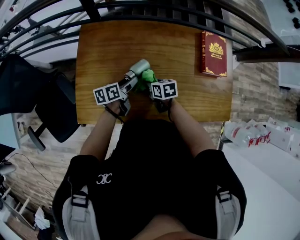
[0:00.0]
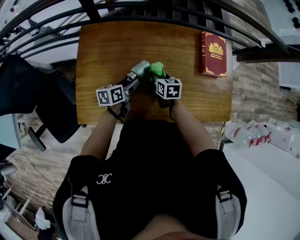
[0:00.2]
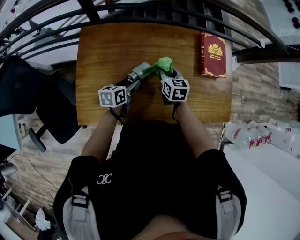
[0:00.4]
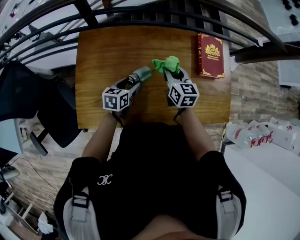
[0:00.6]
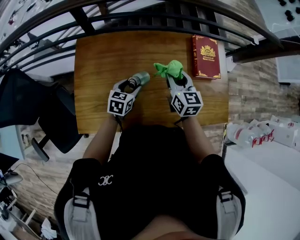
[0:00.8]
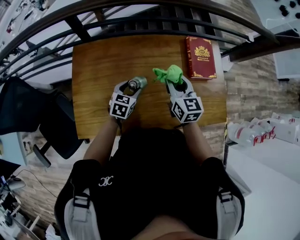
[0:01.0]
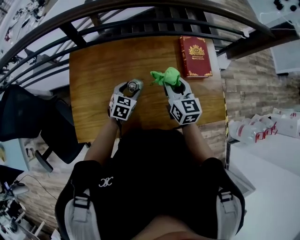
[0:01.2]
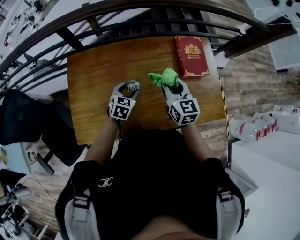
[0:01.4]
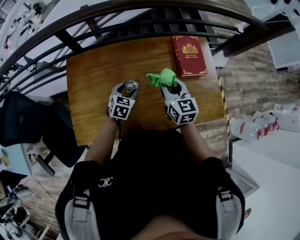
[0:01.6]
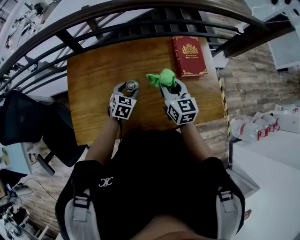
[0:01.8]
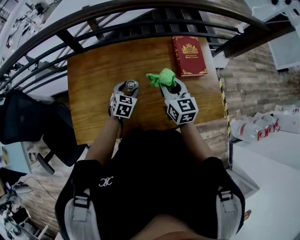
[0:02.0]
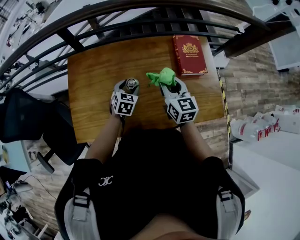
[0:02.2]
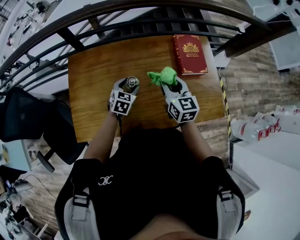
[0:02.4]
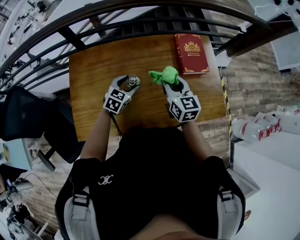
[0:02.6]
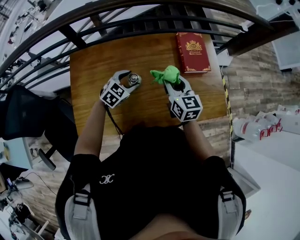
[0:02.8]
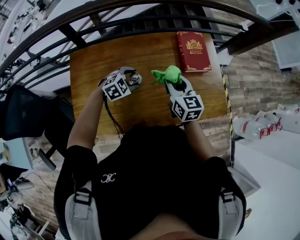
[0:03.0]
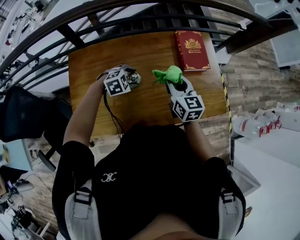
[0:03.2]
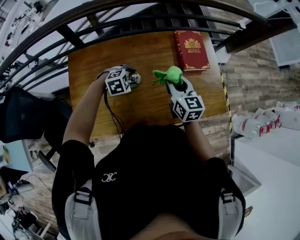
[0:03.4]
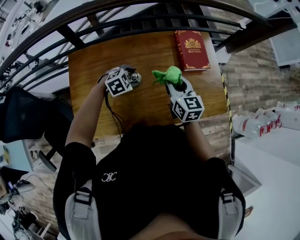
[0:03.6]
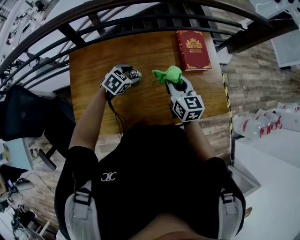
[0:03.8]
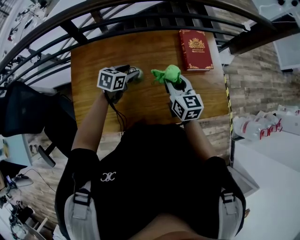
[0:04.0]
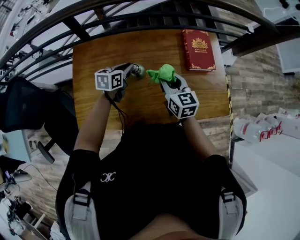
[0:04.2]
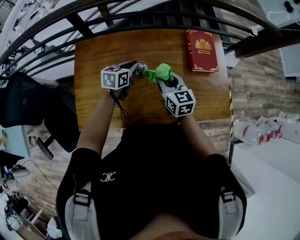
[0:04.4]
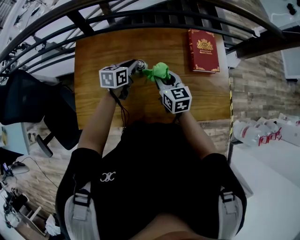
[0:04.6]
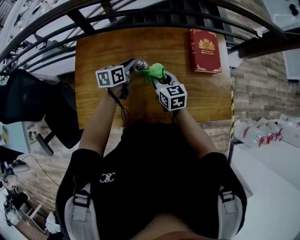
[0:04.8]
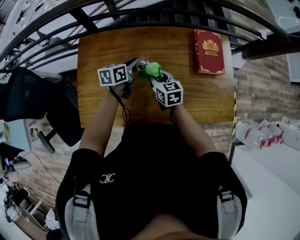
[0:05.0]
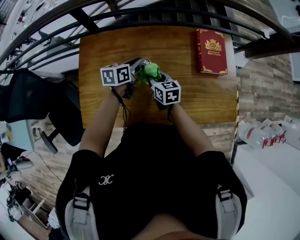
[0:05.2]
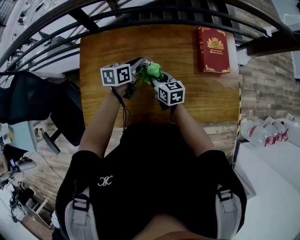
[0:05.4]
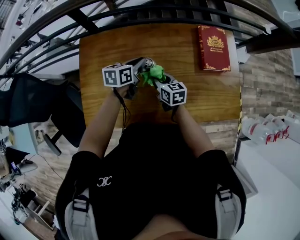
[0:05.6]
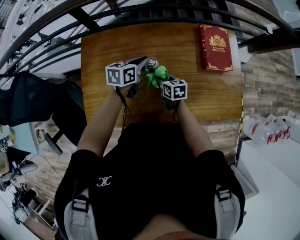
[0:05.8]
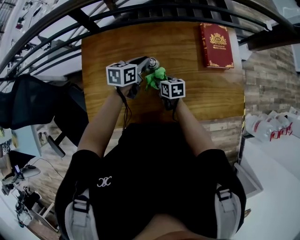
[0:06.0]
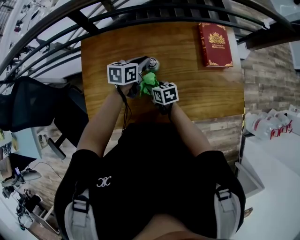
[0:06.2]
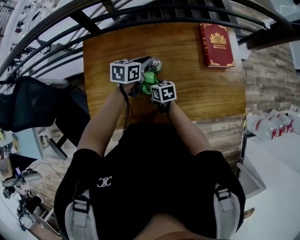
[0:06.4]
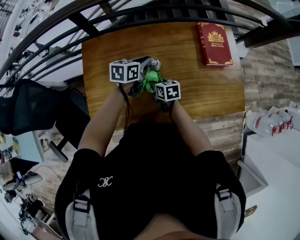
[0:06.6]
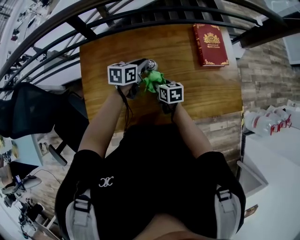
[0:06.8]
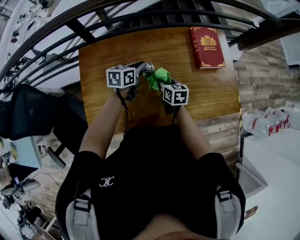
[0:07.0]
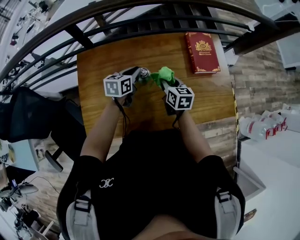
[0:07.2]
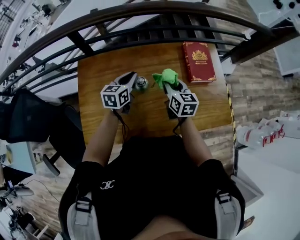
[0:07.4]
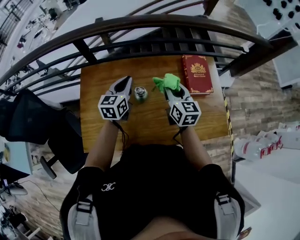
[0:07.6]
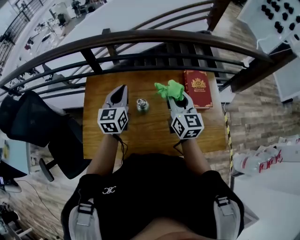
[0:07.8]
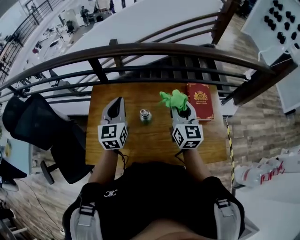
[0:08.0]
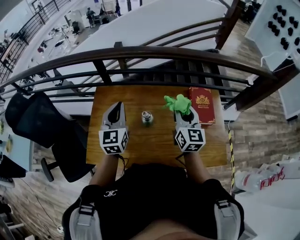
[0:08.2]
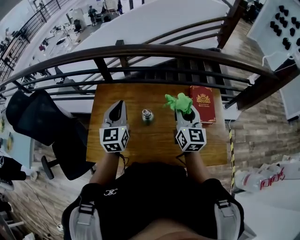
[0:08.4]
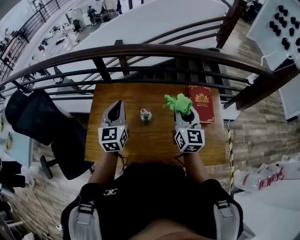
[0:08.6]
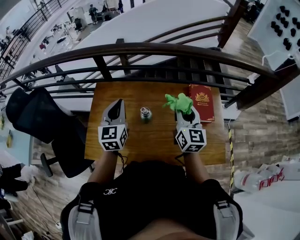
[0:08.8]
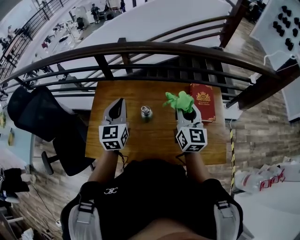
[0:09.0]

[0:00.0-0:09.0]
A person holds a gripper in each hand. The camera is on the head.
0:00.0 to 0:01.6: The left gripper moves to the right, some 10 cm, and rolls clockwise, seen from behind, by about 60 degrees. Meanwhile the right gripper goes about 30 cm upward and to the right, and tilts its fingers some 30 degrees upward.
0:01.6 to 0:03.0: The left gripper rotates about 40 degrees.
0:03.0 to 0:04.4: The grippers both shift to the left by about 5 cm. The left gripper rolls counterclockwise, seen from behind, by approximately 60 degrees, and closes its fingers.
0:04.4 to 0:06.0: The right gripper shifts some 20 cm downward, and turns by some 30 degrees.
0:06.0 to 0:07.6: The left gripper moves upward, some 10 cm, and rotates approximately 30 degrees. Meanwhile the right gripper travels upward by roughly 25 cm, and turns by some 40 degrees.
0:07.6 to 0:09.0: The right gripper moves upward, roughly 10 cm; the left gripper goes approximately 15 cm upward and backward, and turns by about 30 degrees.

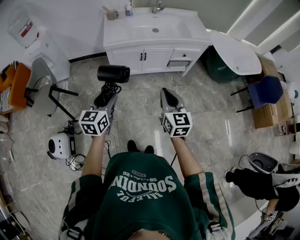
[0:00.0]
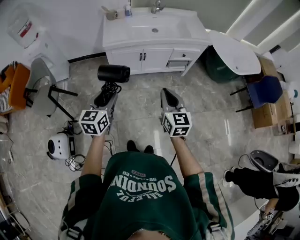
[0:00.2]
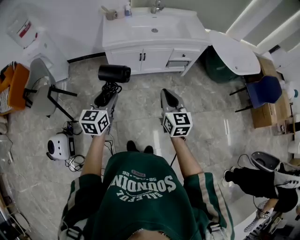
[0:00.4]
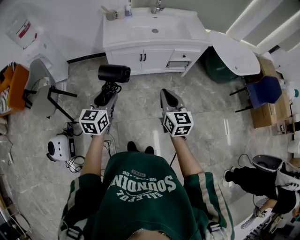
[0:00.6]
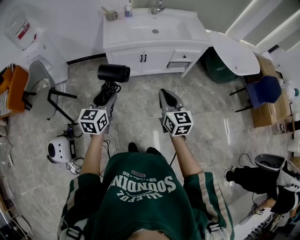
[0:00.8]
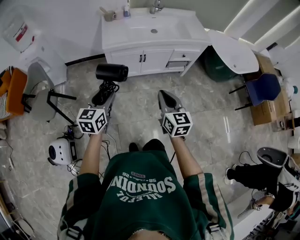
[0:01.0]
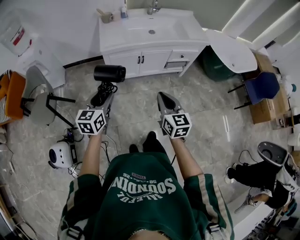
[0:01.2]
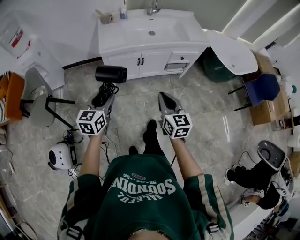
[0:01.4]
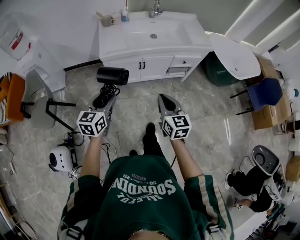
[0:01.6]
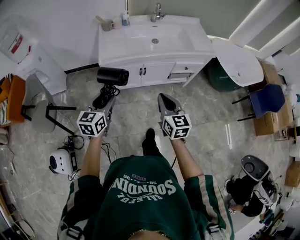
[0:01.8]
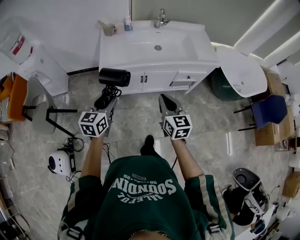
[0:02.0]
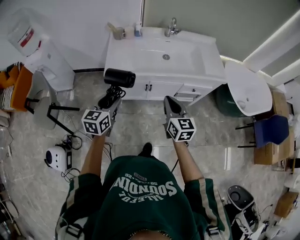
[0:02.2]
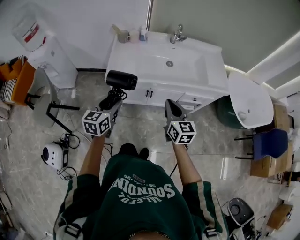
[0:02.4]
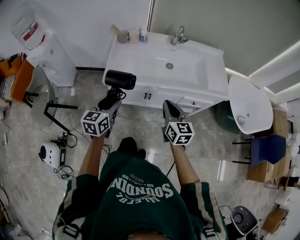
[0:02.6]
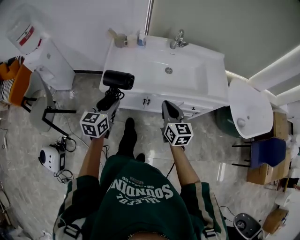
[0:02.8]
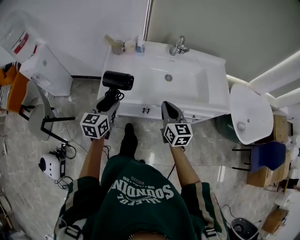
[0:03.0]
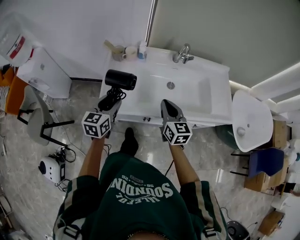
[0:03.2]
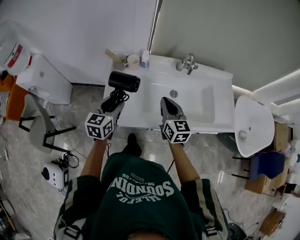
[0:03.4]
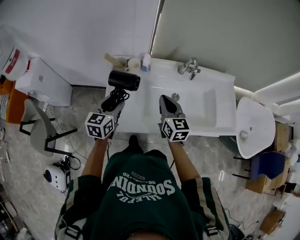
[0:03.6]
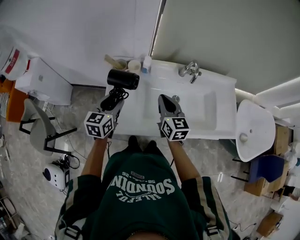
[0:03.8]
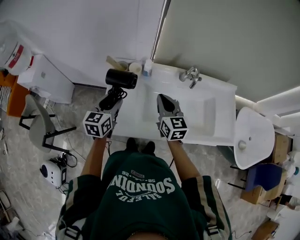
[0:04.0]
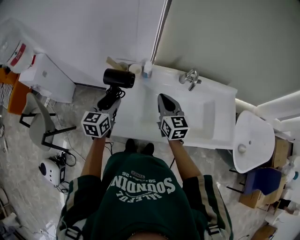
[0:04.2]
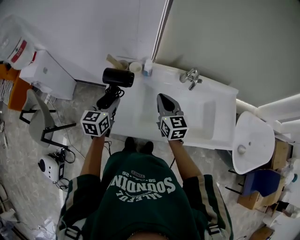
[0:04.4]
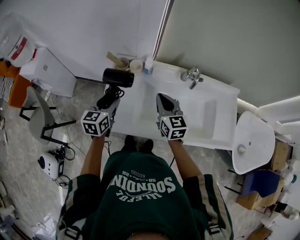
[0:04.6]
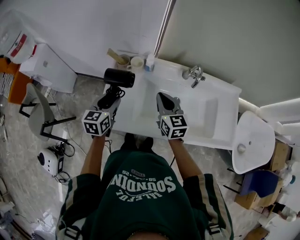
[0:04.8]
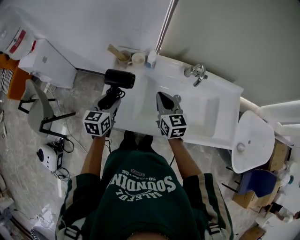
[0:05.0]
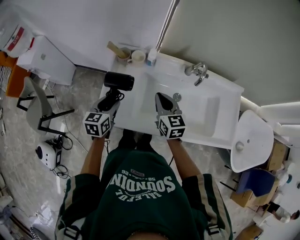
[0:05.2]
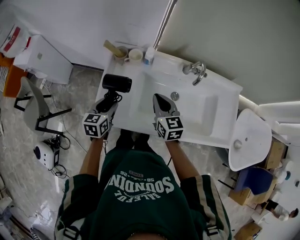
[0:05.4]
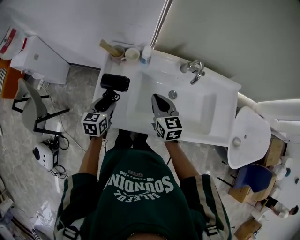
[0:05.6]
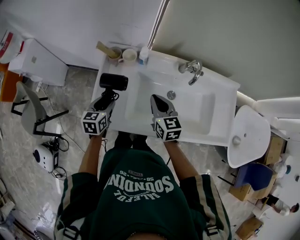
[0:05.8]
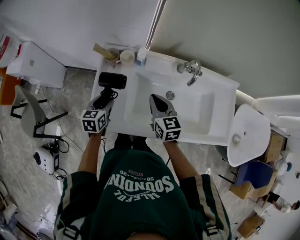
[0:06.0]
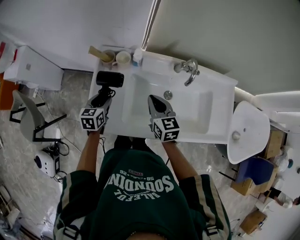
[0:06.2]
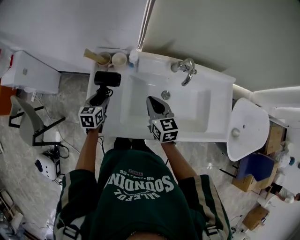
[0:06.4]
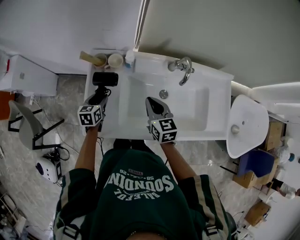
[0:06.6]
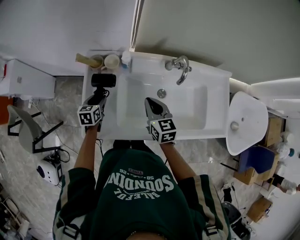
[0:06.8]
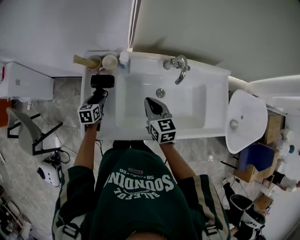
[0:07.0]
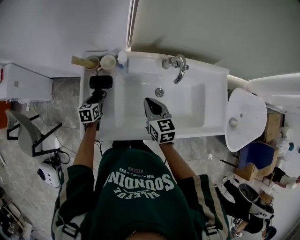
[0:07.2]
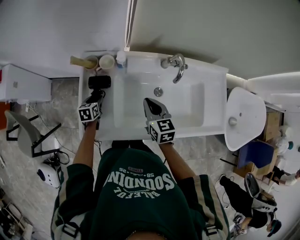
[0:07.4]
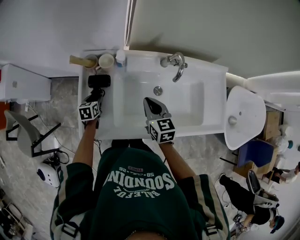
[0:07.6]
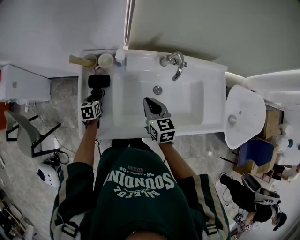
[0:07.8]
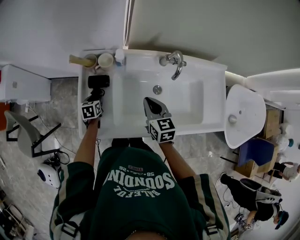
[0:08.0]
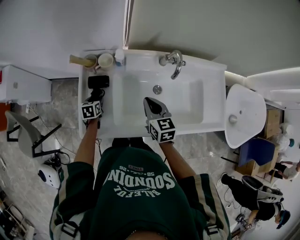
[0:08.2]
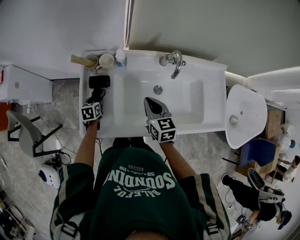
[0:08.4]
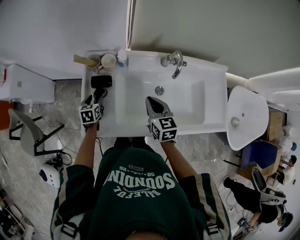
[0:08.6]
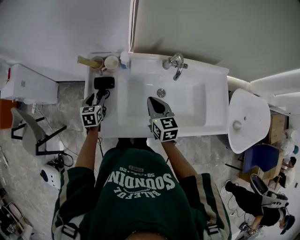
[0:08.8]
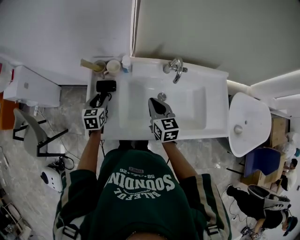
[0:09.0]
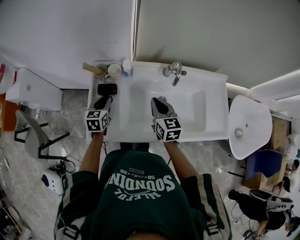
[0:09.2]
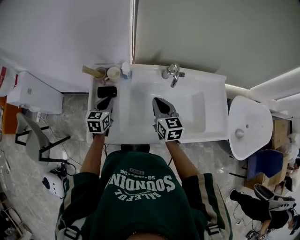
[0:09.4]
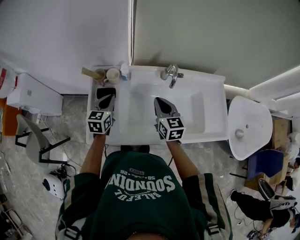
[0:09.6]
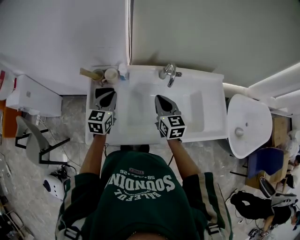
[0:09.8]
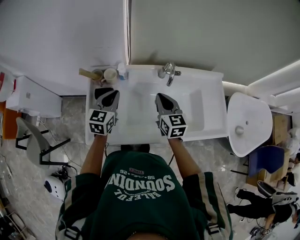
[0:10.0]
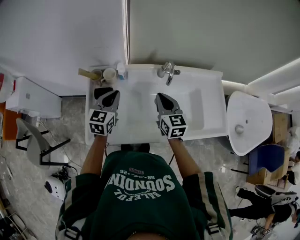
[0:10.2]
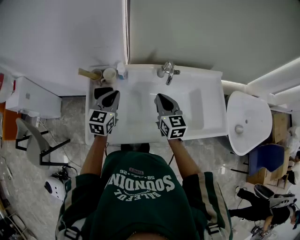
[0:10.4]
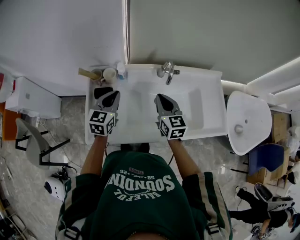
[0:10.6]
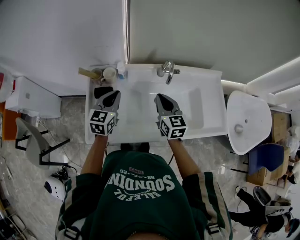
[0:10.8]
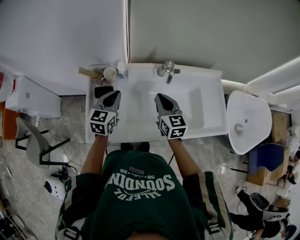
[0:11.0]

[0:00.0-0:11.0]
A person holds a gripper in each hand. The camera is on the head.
0:00.0 to 0:01.6: The grippers both shift forward by approximately 10 cm.
0:01.6 to 0:03.2: Both grippers are carried forward, approximately 50 cm.
0:03.2 to 0:04.8: The two grippers go about 15 cm forward.
0:04.8 to 0:06.2: The left gripper shifts roughly 10 cm downward; the right gripper heads downward, covering approximately 5 cm.
0:06.2 to 0:07.8: The left gripper moves downward, about 10 cm.
0:07.8 to 0:09.4: The right gripper goes some 5 cm upward, while the left gripper is displaced upward by some 20 cm, rotates some 20 degrees, and closes its fingers.
0:09.4 to 0:11.0: The left gripper moves upward and to the right, roughly 10 cm.

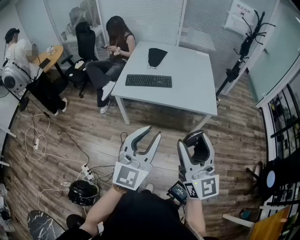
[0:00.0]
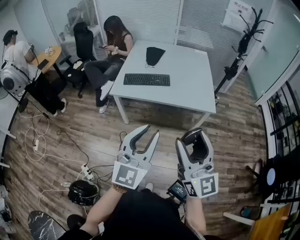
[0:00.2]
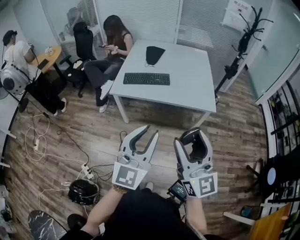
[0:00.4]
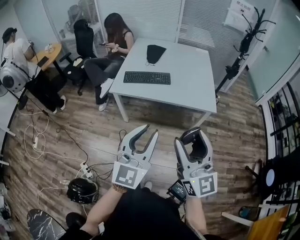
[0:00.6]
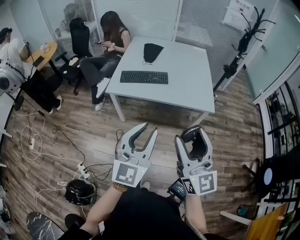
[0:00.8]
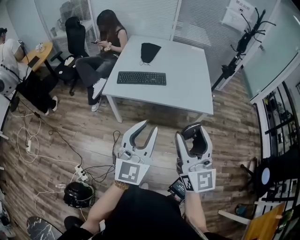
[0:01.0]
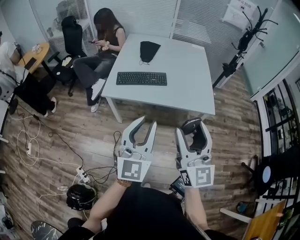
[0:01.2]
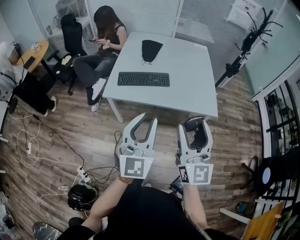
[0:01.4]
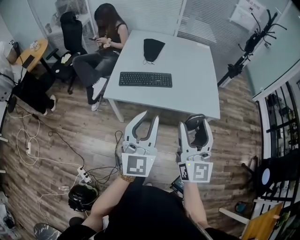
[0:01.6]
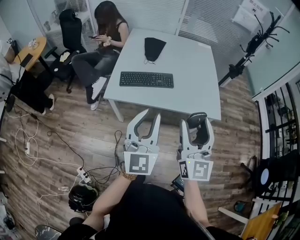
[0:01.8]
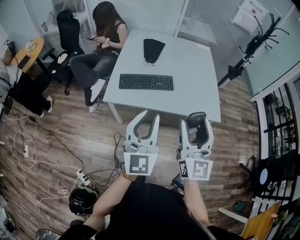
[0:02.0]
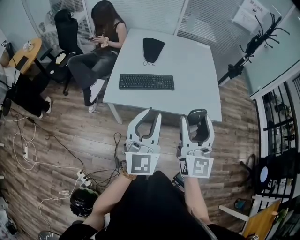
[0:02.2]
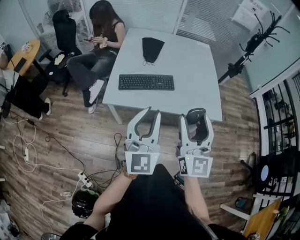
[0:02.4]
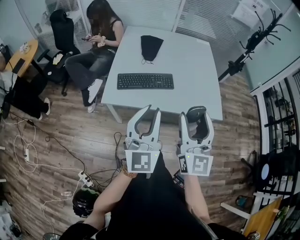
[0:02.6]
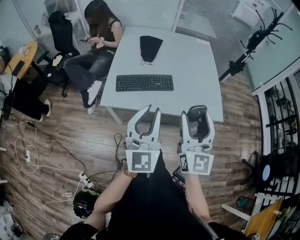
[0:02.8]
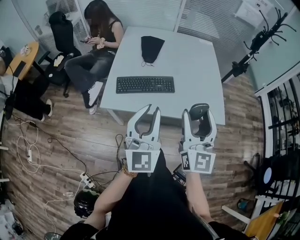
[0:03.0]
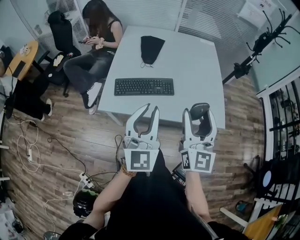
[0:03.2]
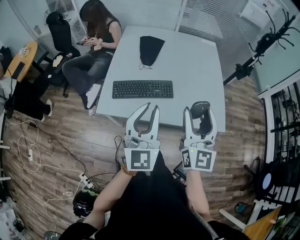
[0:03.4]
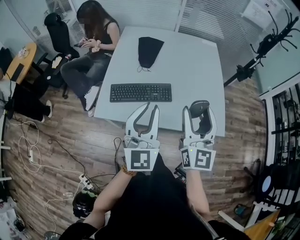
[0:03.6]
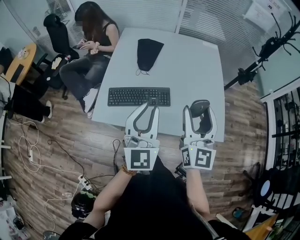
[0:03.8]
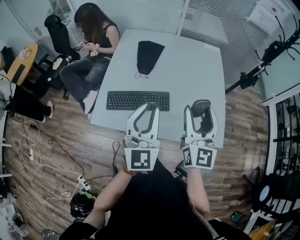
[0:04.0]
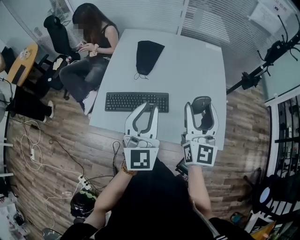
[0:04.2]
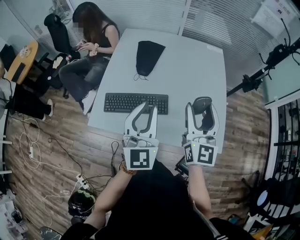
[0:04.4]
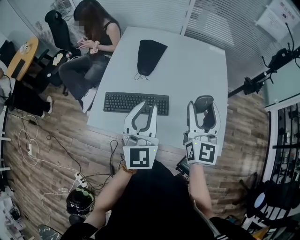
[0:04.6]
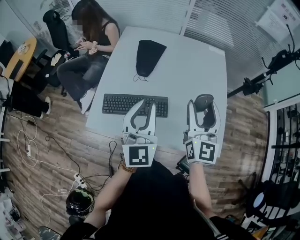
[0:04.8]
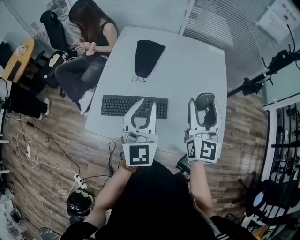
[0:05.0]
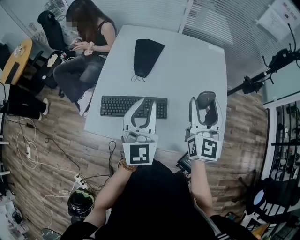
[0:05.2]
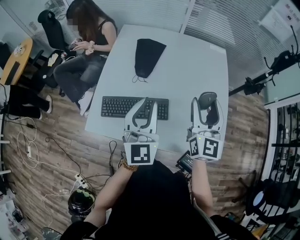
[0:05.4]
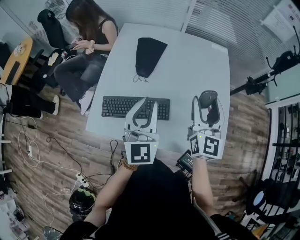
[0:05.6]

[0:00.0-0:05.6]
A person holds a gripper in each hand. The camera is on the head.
0:00.0 to 0:01.4: Both grippers travel together forward, about 15 cm.
0:01.4 to 0:02.8: Both grippers travel together forward, approximately 15 cm.
0:02.8 to 0:04.2: The grippers both shift forward by about 25 cm.
0:04.2 to 0:05.6: The two grippers go roughly 10 cm forward.
